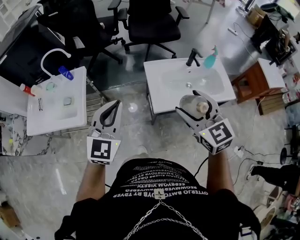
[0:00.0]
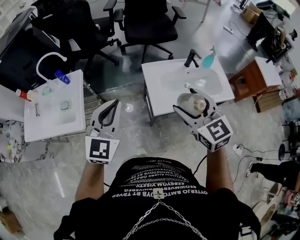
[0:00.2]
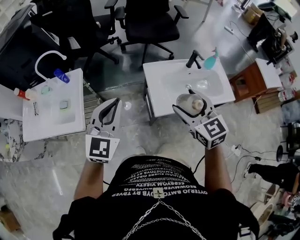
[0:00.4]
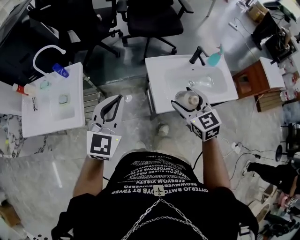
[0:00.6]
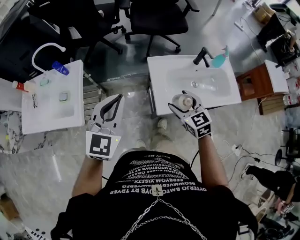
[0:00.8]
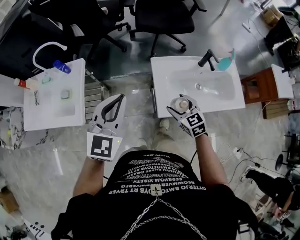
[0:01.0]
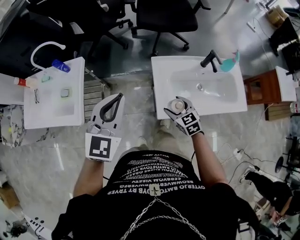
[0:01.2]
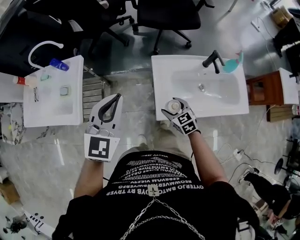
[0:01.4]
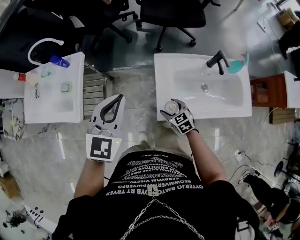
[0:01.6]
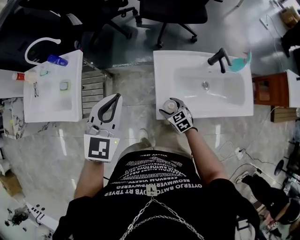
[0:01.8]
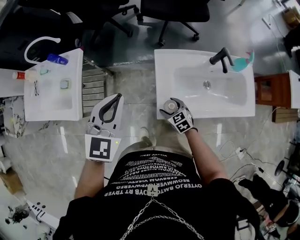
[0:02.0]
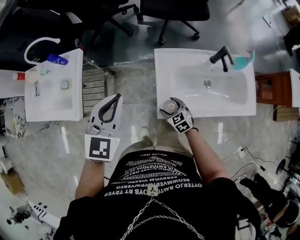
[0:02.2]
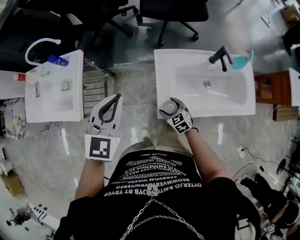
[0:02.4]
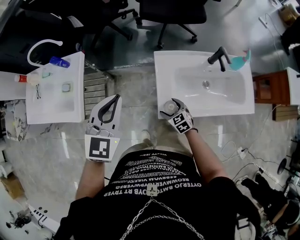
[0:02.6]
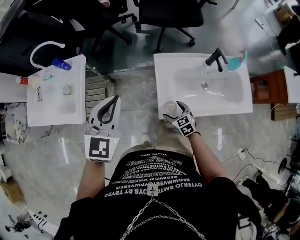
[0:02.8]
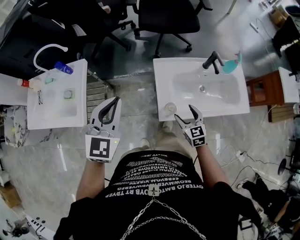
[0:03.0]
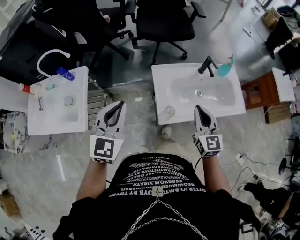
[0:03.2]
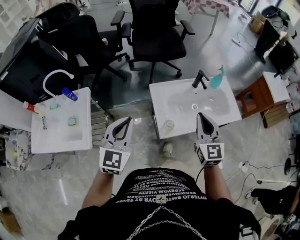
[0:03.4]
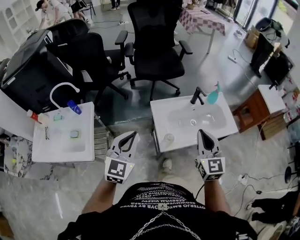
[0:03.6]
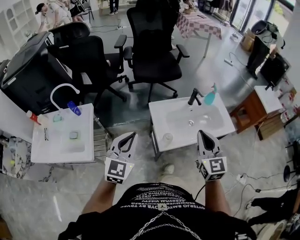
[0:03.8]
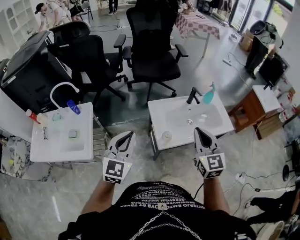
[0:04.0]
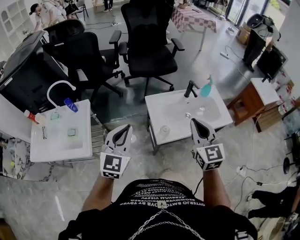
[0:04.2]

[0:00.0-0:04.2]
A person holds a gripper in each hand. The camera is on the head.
0:00.0 to 0:01.4: The right gripper shifts roughly 40 cm downward and forward, and turns by some 30 degrees. Meanwhile the left gripper shifts some 15 cm forward.
0:01.4 to 0:02.8: The right gripper is displaced downward by about 5 cm.
0:02.8 to 0:04.2: The right gripper travels upward by approximately 40 cm, tips its fingers upward by approximately 40 degrees, and closes up. Meanwhile the left gripper moves about 15 cm.

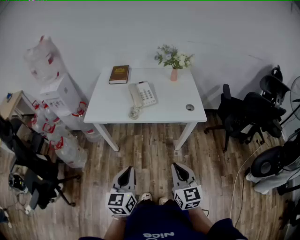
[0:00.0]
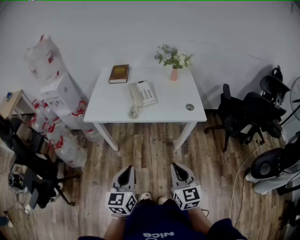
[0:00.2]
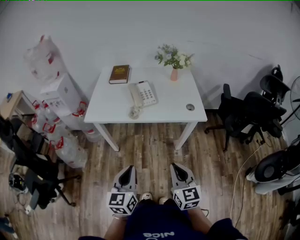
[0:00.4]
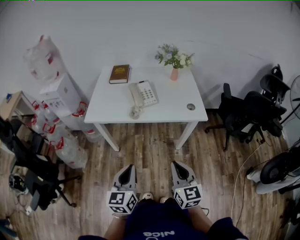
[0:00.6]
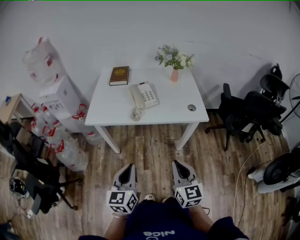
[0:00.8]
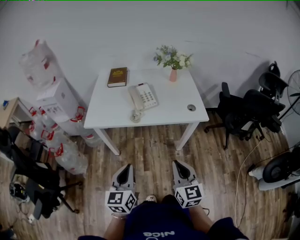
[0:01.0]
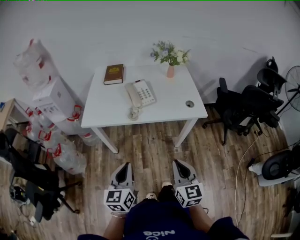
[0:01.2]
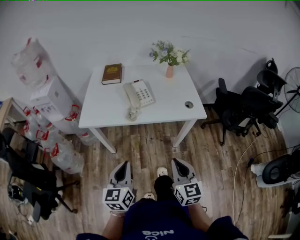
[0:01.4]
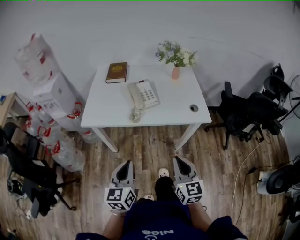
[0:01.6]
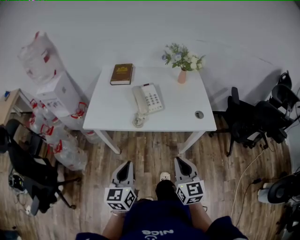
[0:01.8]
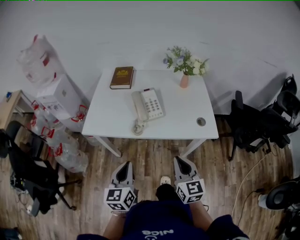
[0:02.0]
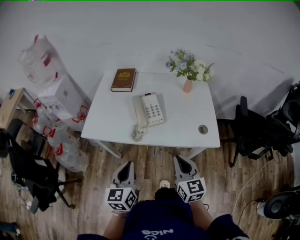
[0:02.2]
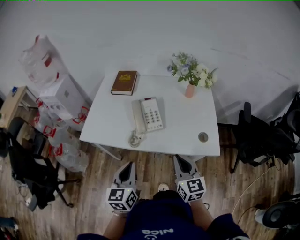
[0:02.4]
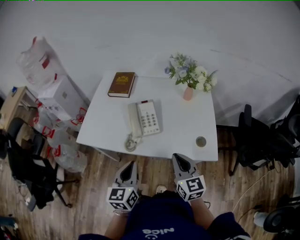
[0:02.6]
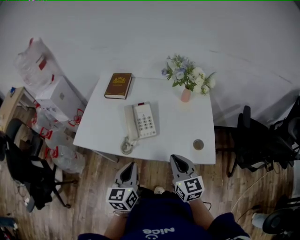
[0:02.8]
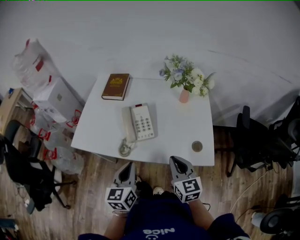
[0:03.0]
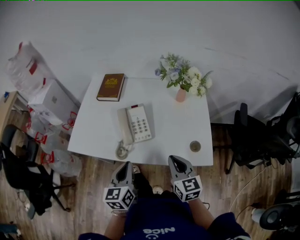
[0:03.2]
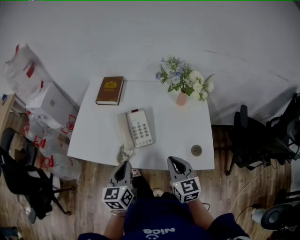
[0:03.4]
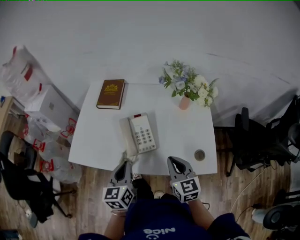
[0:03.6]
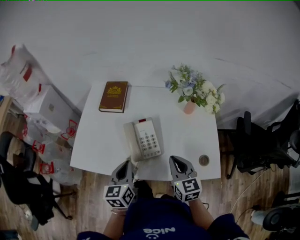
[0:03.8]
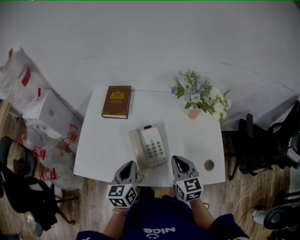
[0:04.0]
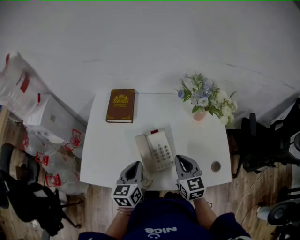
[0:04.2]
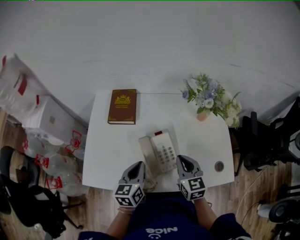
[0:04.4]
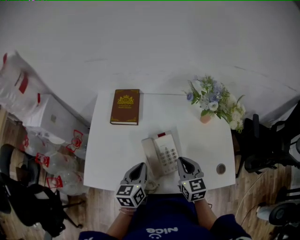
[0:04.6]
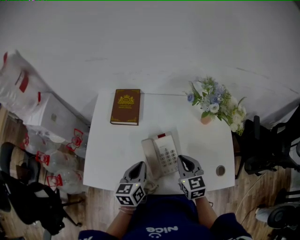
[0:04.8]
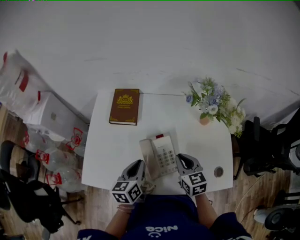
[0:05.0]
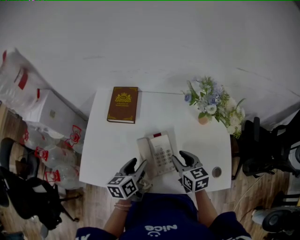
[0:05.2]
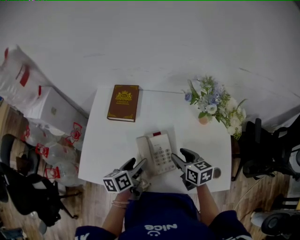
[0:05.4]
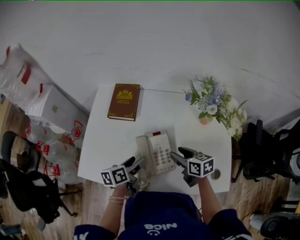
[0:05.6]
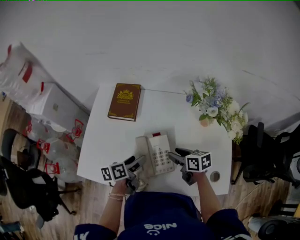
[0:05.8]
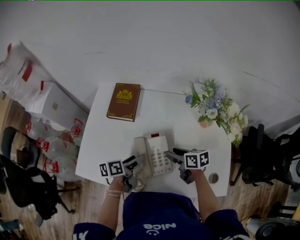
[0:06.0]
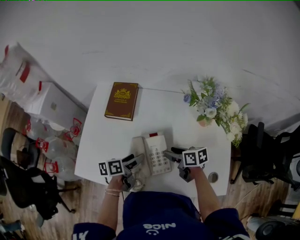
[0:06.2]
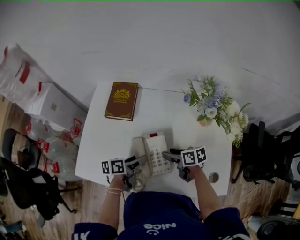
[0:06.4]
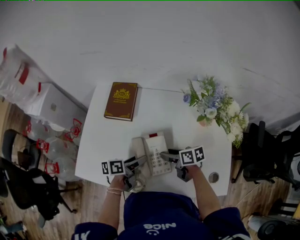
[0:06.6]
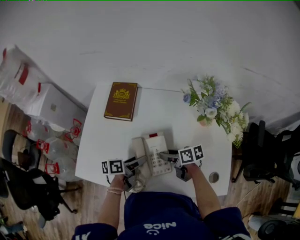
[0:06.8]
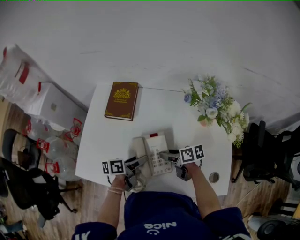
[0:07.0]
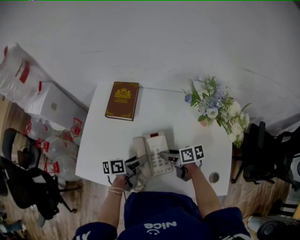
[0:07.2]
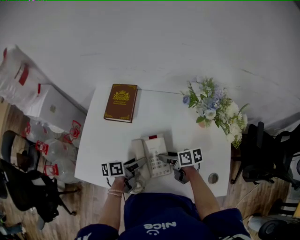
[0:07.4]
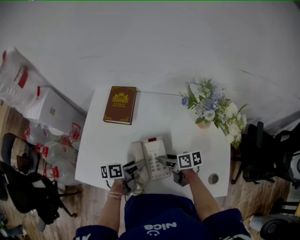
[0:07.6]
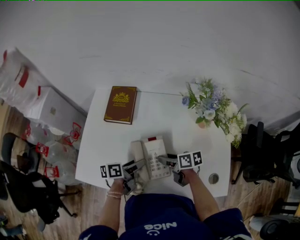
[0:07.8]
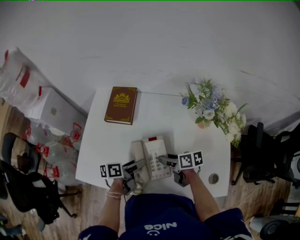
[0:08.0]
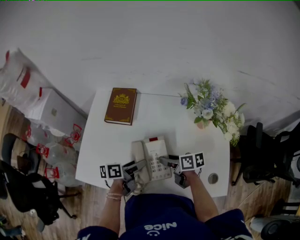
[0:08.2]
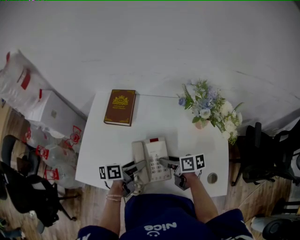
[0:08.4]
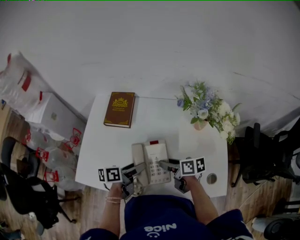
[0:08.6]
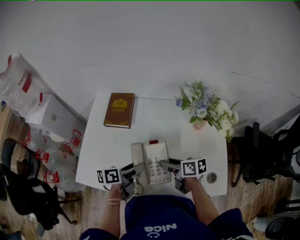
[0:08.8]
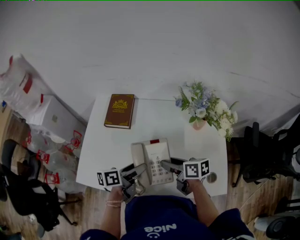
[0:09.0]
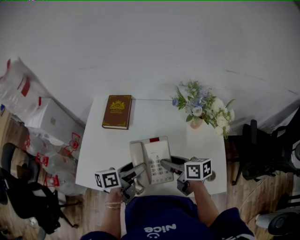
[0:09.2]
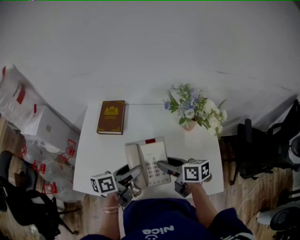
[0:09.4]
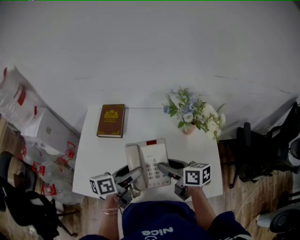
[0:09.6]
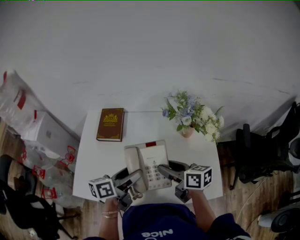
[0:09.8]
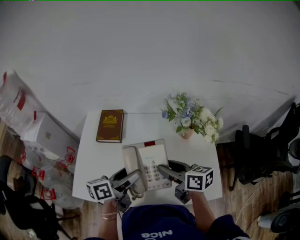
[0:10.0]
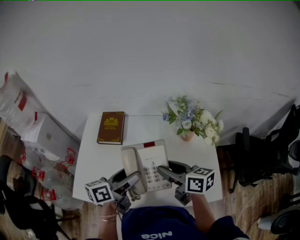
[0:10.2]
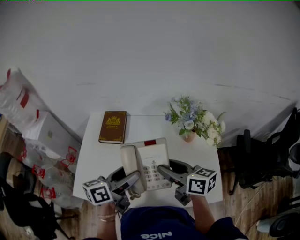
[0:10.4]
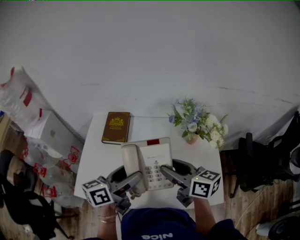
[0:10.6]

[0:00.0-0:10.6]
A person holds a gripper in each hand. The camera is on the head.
0:00.0 to 0:01.6: The two grippers go approximately 10 cm forward.
0:01.6 to 0:03.0: The left gripper heads forward and to the right, covering some 25 cm. Meanwhile the right gripper goes roughly 25 cm forward.
0:03.0 to 0:04.6: The grippers both shift forward and to the left by roughly 20 cm.
0:04.6 to 0:06.0: The right gripper travels downward and forward by some 10 cm, swivels approximately 50 degrees, and opens, while the left gripper travels downward by some 5 cm, swivels some 40 degrees, and opens.
0:06.0 to 0:07.6: The grippers stay close to where they were, moving slightly.
0:07.6 to 0:09.0: Both grippers move upward, about 10 cm.
0:09.0 to 0:10.6: The grippers both shift upward by about 15 cm. The right gripper swivels approximately 30 degrees; the left gripper turns by about 20 degrees.

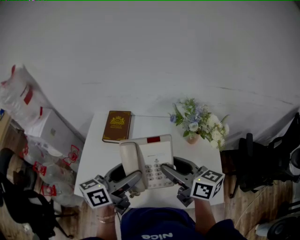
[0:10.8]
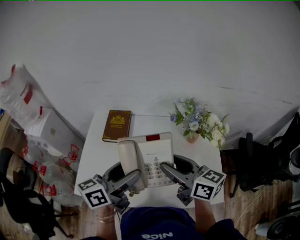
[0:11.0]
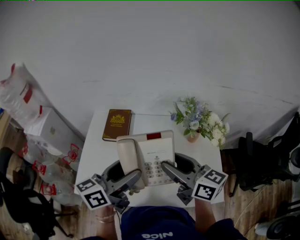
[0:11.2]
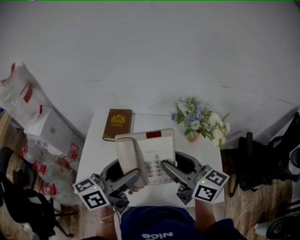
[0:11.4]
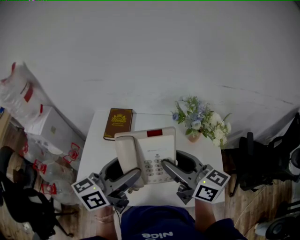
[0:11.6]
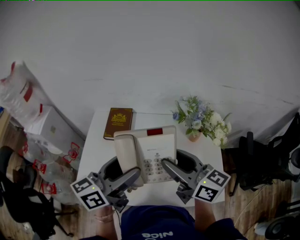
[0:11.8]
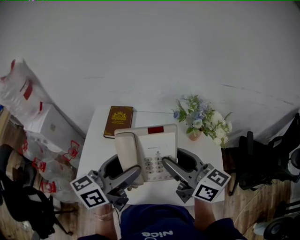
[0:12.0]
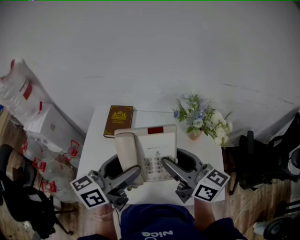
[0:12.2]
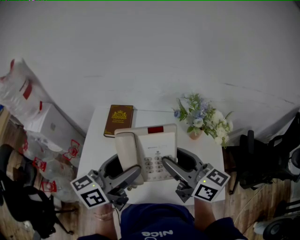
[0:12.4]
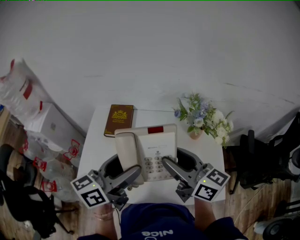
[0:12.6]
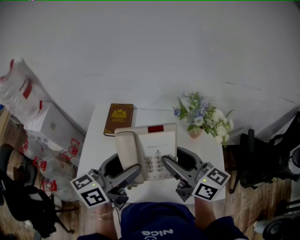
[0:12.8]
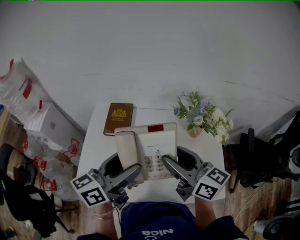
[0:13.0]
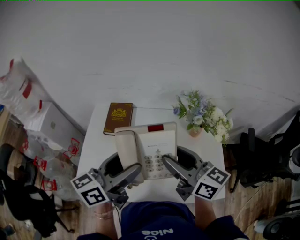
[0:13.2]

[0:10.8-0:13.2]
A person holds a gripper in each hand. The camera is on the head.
0:10.8 to 0:12.0: Both grippers travel together upward, some 5 cm.
0:12.0 to 0:13.2: Neither gripper changes place.

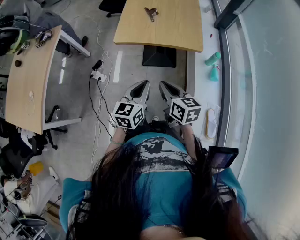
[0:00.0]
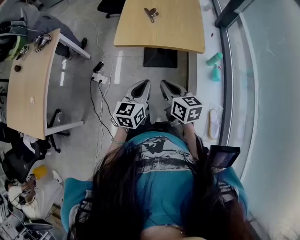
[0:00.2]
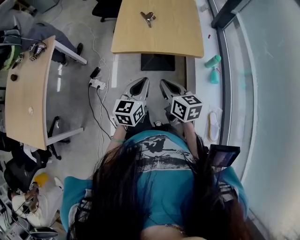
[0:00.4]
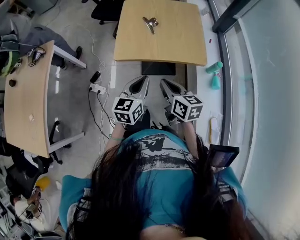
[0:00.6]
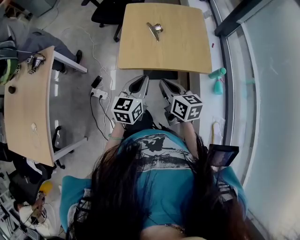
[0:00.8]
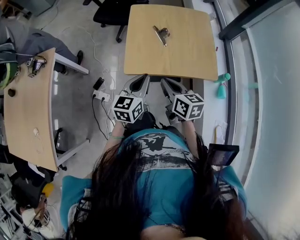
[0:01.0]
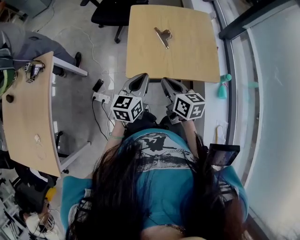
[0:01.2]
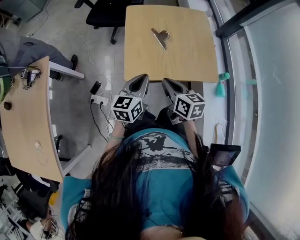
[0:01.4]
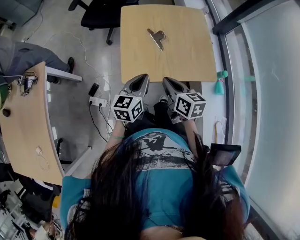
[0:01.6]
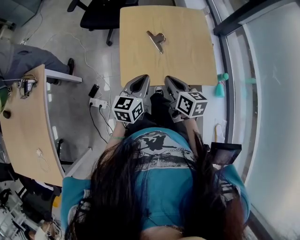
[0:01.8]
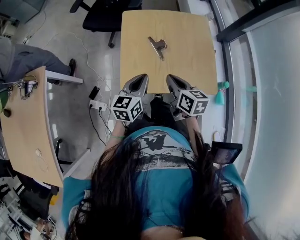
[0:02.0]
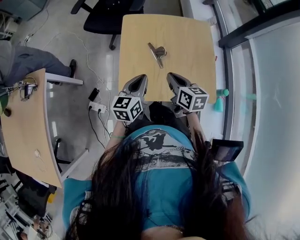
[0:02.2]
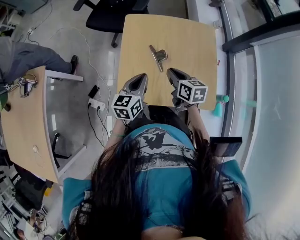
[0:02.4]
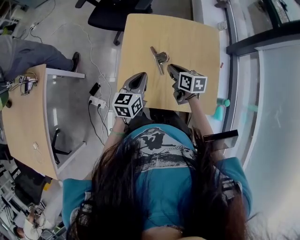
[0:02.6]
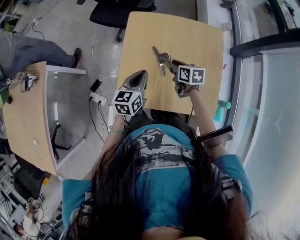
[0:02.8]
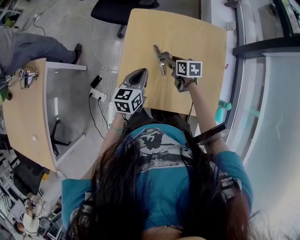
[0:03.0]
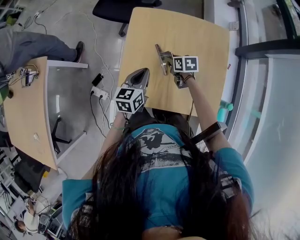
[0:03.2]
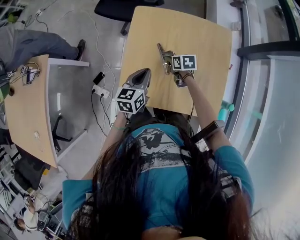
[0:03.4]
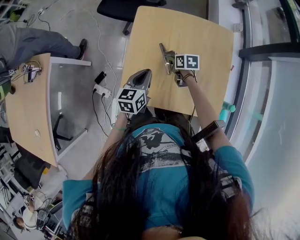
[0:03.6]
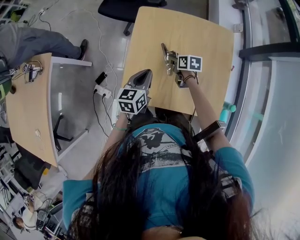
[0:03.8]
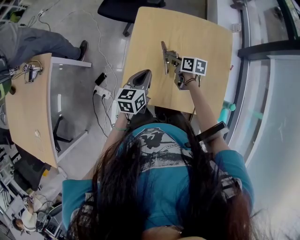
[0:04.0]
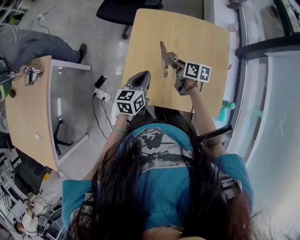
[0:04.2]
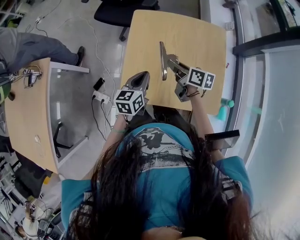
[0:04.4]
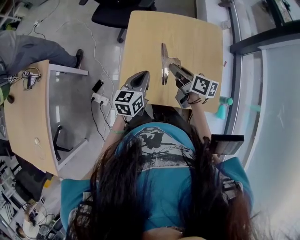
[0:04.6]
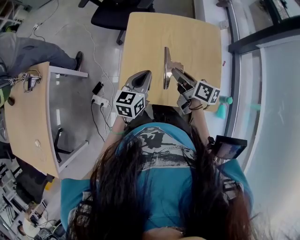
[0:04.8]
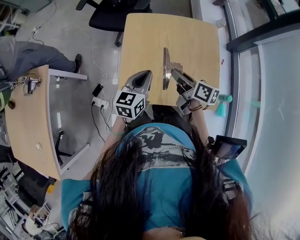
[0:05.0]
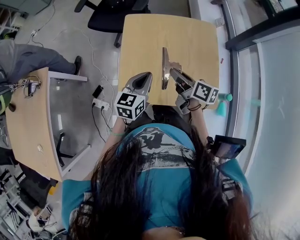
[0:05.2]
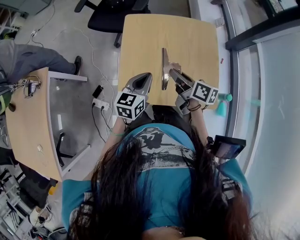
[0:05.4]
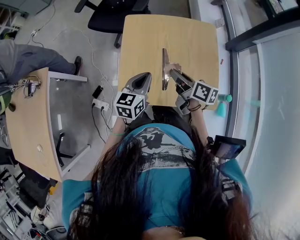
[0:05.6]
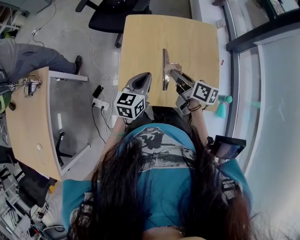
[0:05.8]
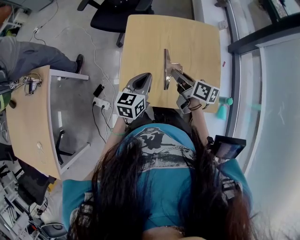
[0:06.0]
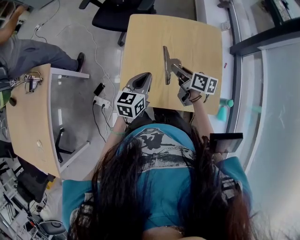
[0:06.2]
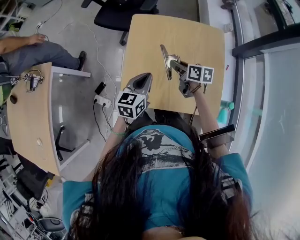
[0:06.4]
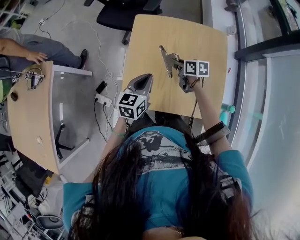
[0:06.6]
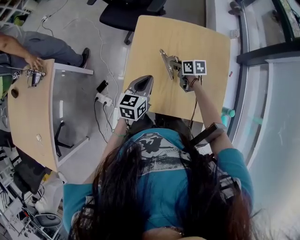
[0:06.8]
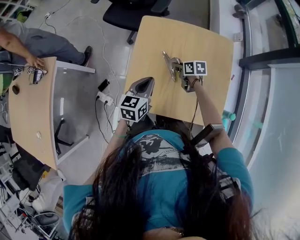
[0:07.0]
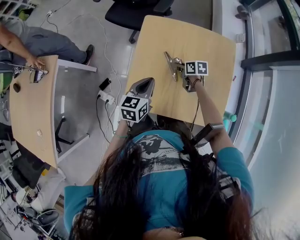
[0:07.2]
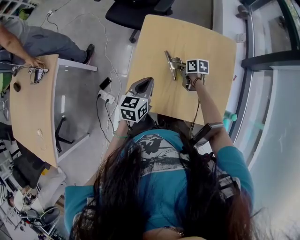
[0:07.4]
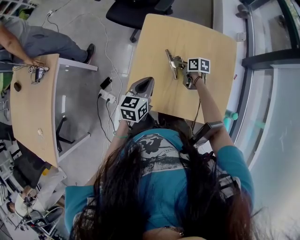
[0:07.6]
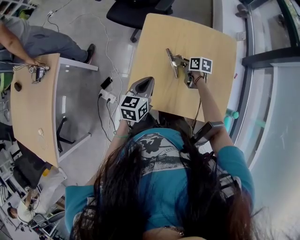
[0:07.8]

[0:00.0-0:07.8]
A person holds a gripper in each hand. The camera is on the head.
0:00.0 to 0:01.6: Both grippers move forward, approximately 35 cm.
0:01.6 to 0:03.2: The left gripper shifts about 20 cm forward, while the right gripper shifts roughly 35 cm forward and downward, rotates some 30 degrees, and opens its fingers.
0:03.2 to 0:04.6: The right gripper goes about 20 cm upward and backward, and tips its fingers upward by roughly 30 degrees. Meanwhile the left gripper changes place by roughly 5 cm.
0:04.6 to 0:06.2: The grippers move only a little.
0:06.2 to 0:07.8: The right gripper travels downward and forward by some 20 cm, and rotates about 20 degrees.
